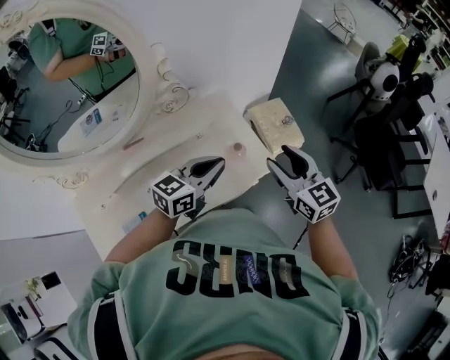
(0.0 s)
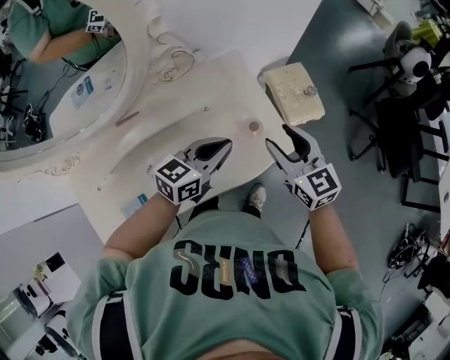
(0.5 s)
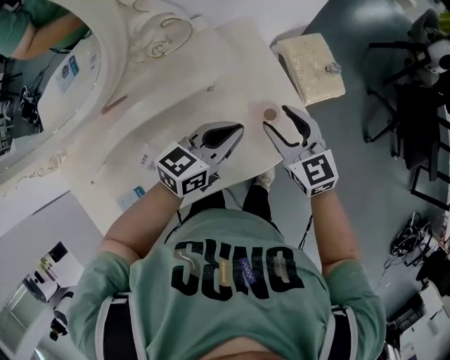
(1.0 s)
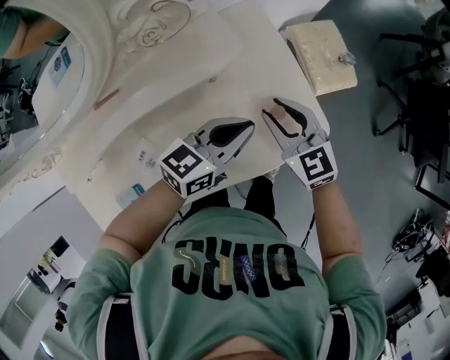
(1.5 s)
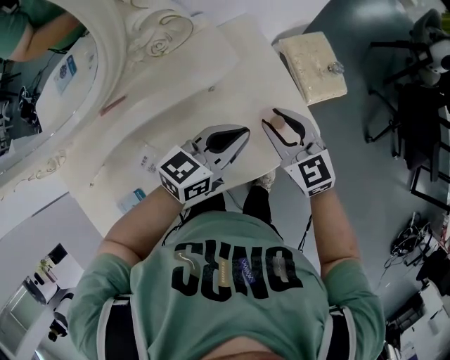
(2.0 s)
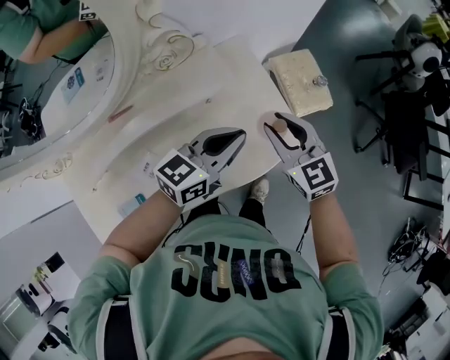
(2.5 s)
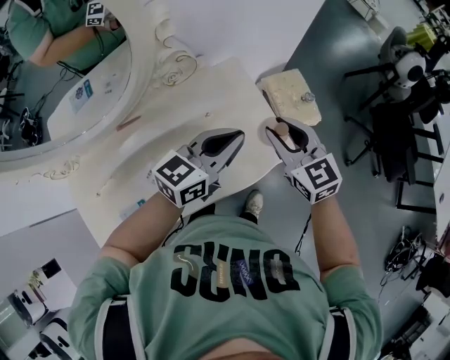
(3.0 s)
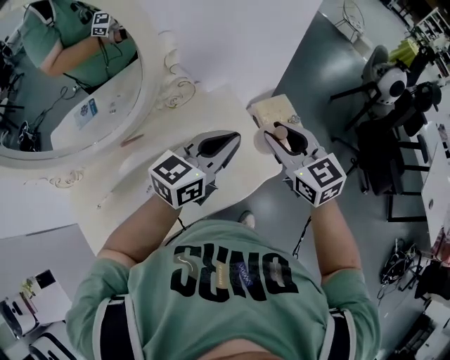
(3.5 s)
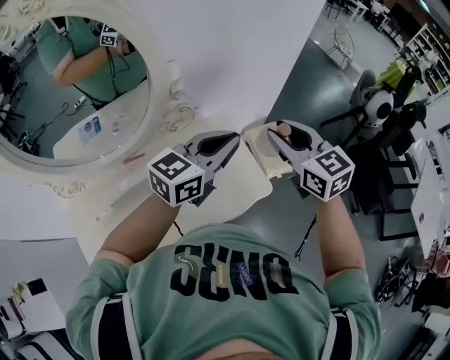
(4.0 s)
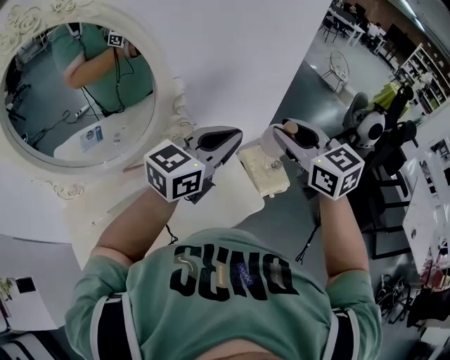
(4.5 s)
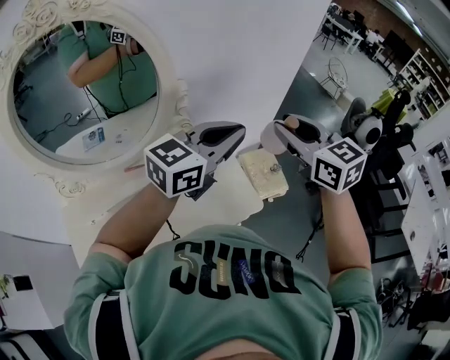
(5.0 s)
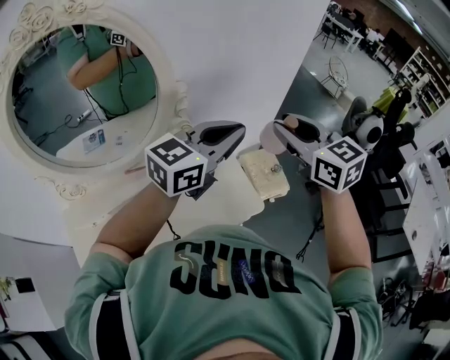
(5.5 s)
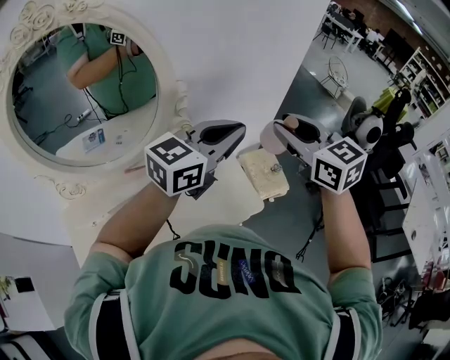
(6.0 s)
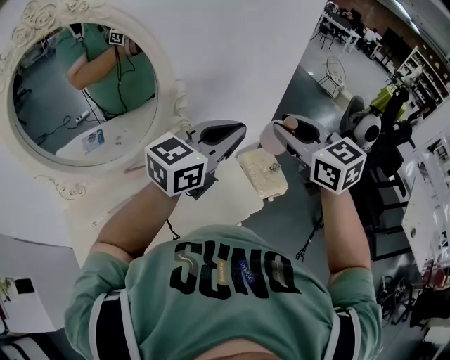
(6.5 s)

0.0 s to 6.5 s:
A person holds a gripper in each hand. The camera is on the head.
0.0 to 2.0 s: The right gripper moves downward and to the left, roughly 20 cm. The left gripper heads downward, covering some 15 cm.
2.0 to 4.5 s: The two grippers go roughly 35 cm upward. The left gripper turns by roughly 30 degrees.
4.5 to 6.5 s: There are only small adjustments of the grippers.

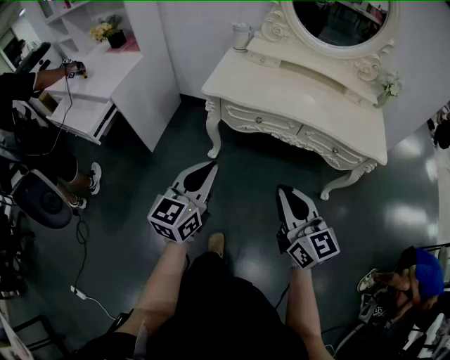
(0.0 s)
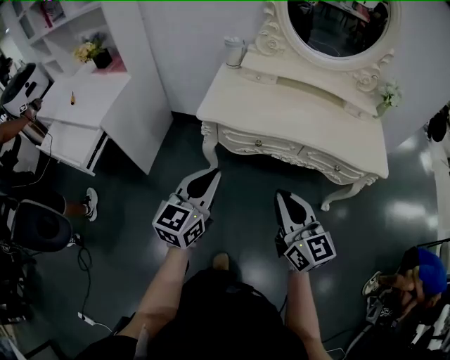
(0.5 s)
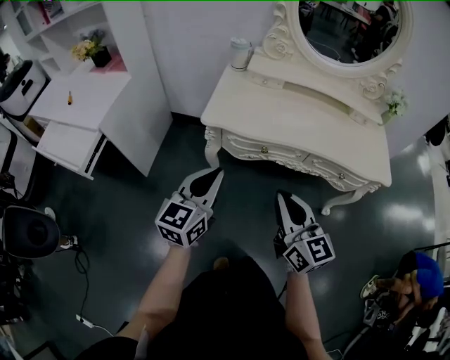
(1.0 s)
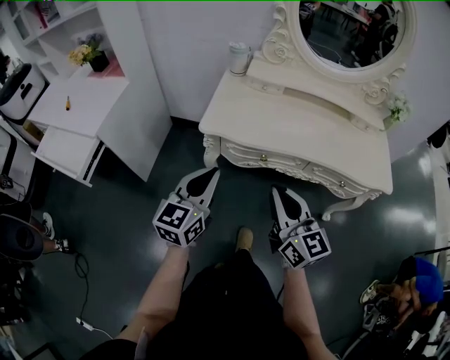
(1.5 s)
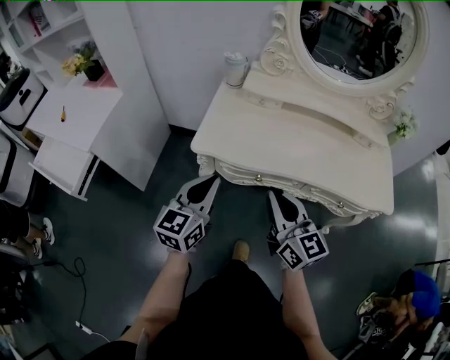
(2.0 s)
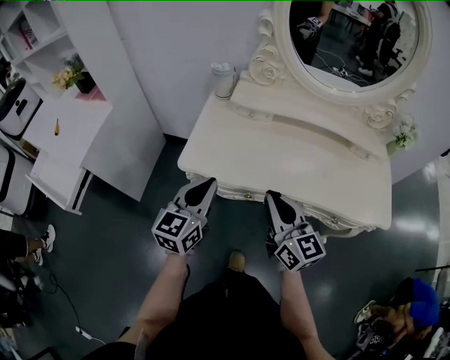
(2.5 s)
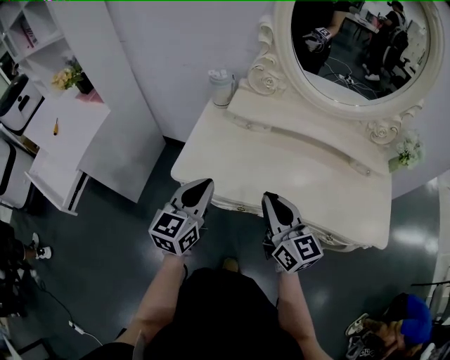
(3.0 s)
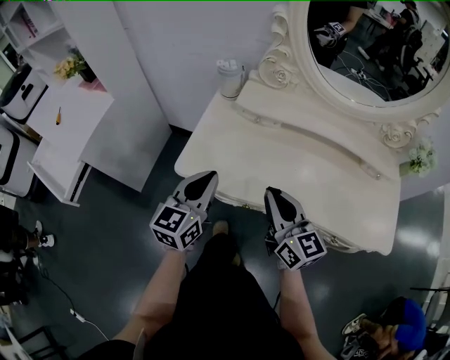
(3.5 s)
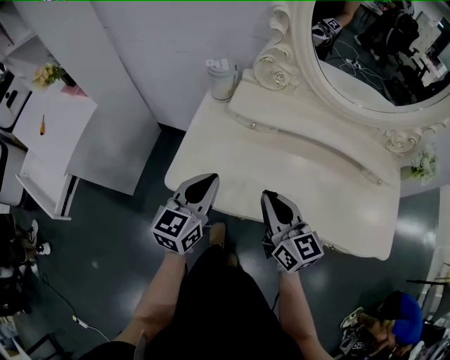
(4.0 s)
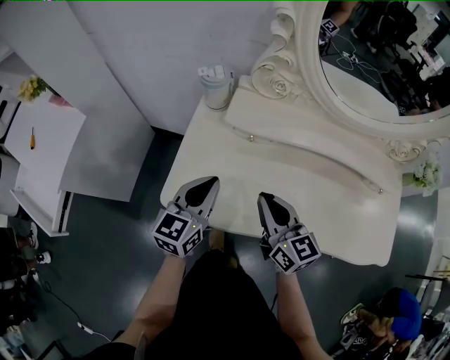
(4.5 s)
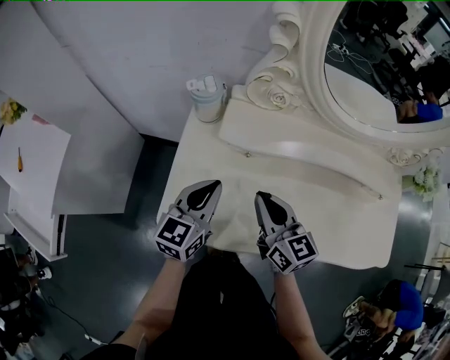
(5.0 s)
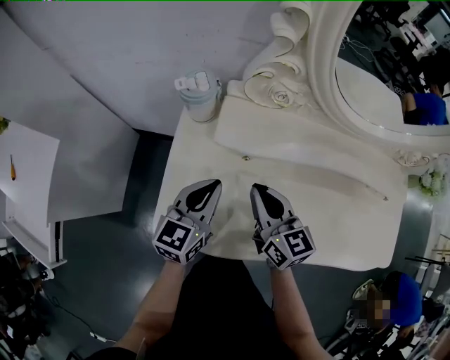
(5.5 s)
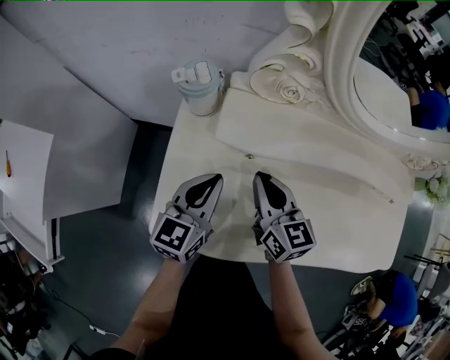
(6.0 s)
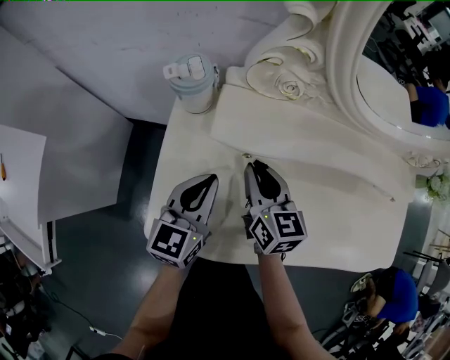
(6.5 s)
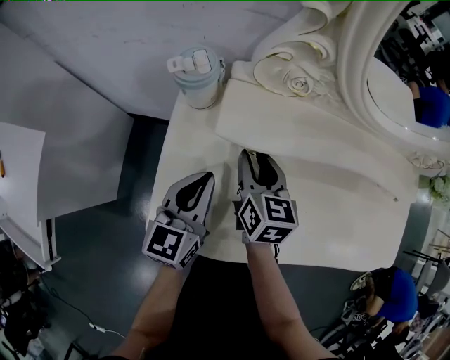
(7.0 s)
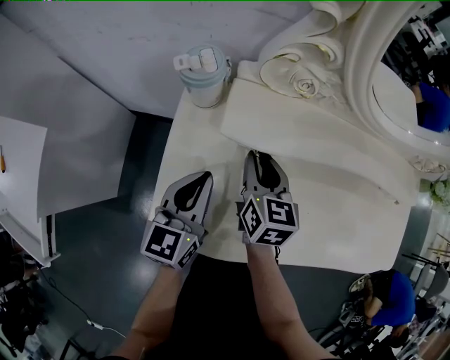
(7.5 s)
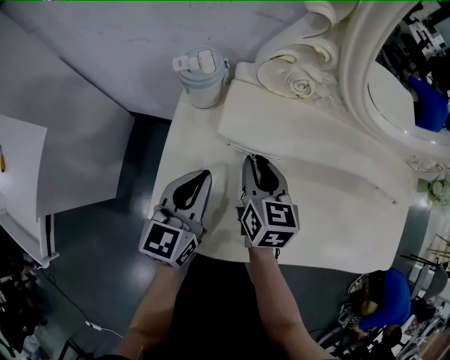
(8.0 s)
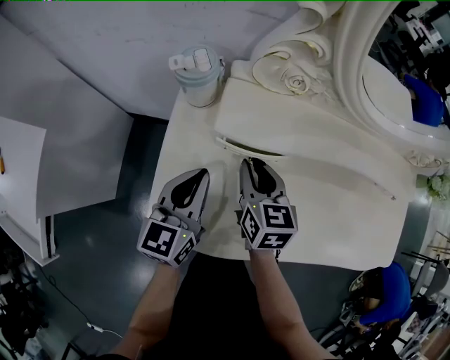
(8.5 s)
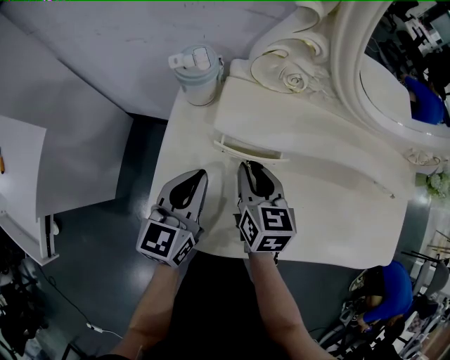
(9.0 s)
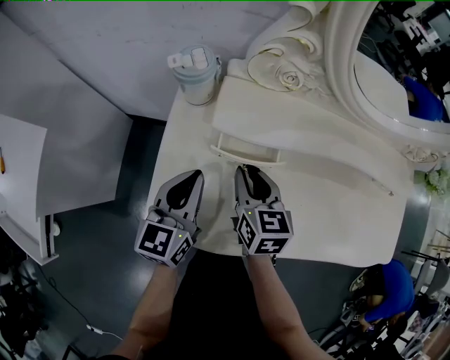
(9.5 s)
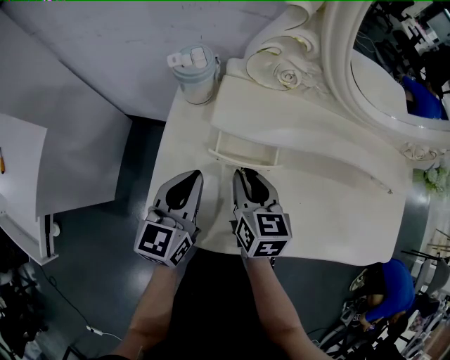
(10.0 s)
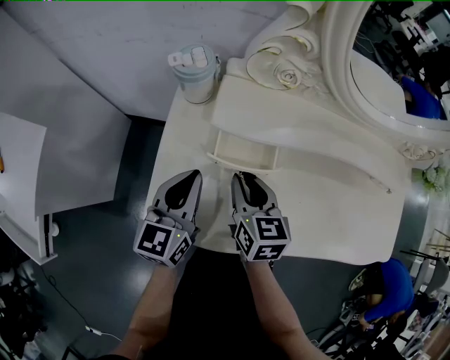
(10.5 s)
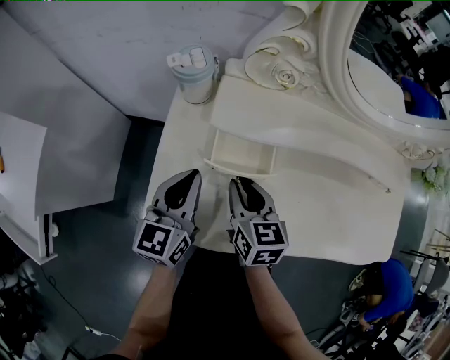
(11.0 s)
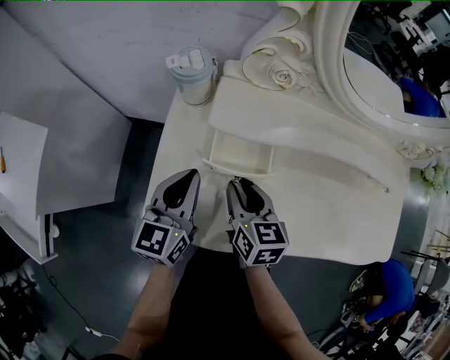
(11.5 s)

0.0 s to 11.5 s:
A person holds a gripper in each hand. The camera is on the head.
0.0 to 2.0 s: Both grippers move forward, some 30 cm.
2.0 to 4.0 s: The two grippers go some 20 cm forward.
4.0 to 6.0 s: Both grippers move forward and downward, approximately 20 cm.
6.0 to 7.5 s: The right gripper ends up roughly 5 cm from where it was, and opens its fingers.
7.5 to 9.5 s: The right gripper shifts some 5 cm backward.
9.5 to 11.5 s: The grippers make only small movements.

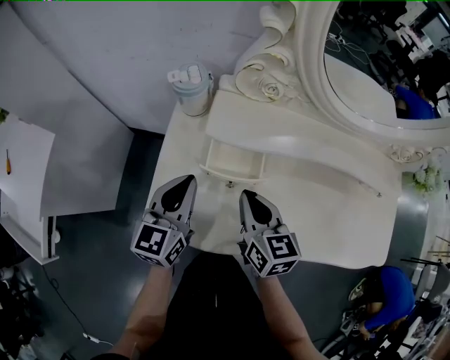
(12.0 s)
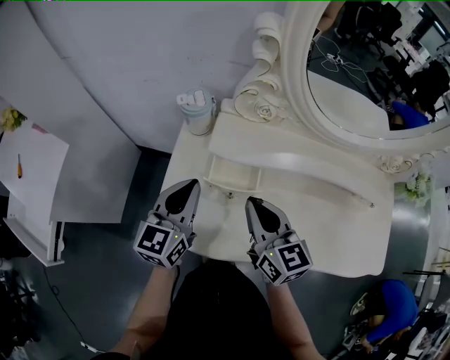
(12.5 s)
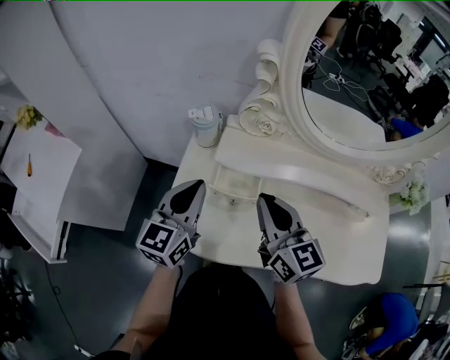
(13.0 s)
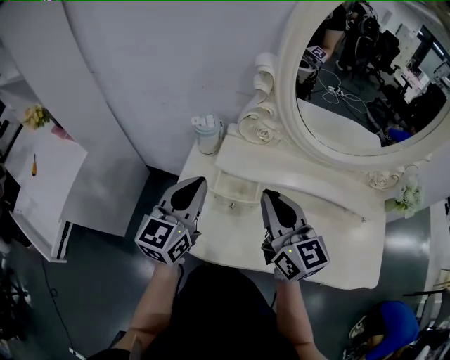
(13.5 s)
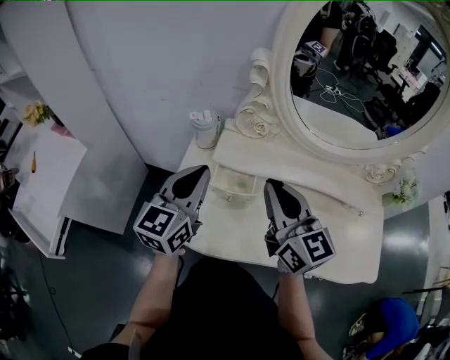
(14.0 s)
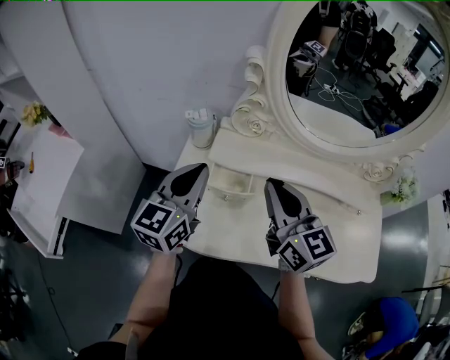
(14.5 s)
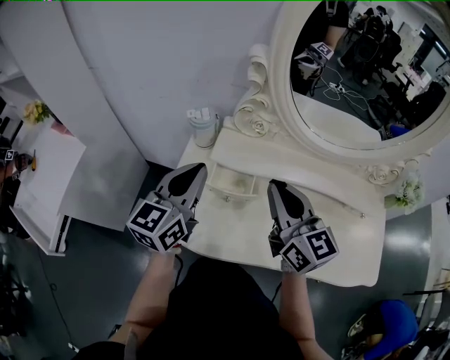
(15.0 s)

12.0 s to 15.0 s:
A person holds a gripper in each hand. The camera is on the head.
12.0 to 13.5 s: The two grippers go roughly 15 cm upward. The right gripper turns by about 30 degrees.
13.5 to 15.0 s: The grippers move only a little.

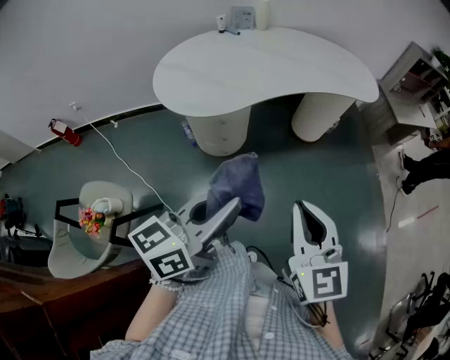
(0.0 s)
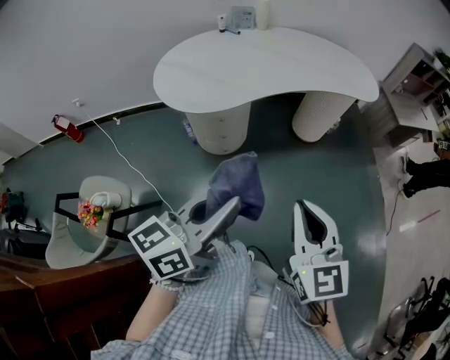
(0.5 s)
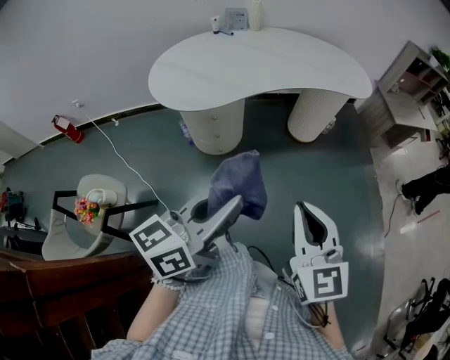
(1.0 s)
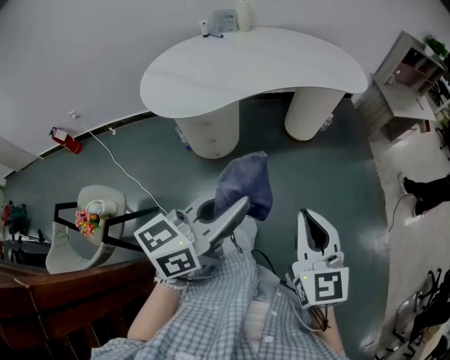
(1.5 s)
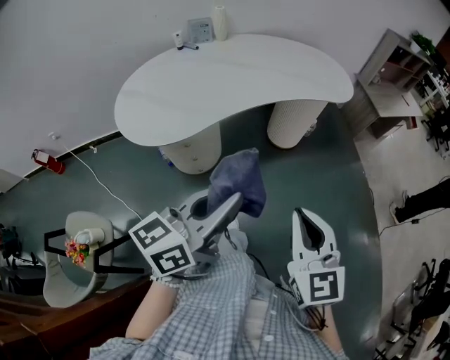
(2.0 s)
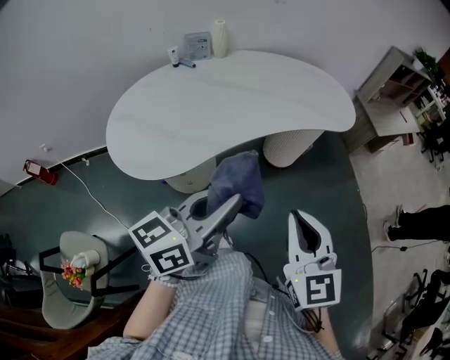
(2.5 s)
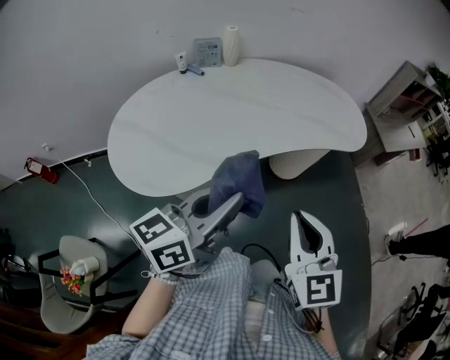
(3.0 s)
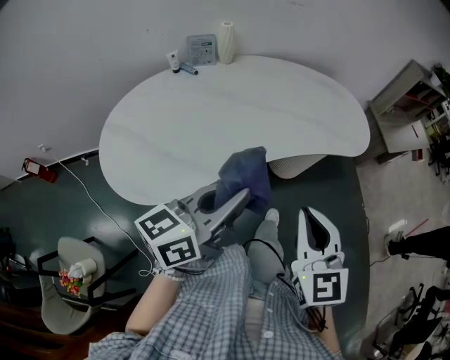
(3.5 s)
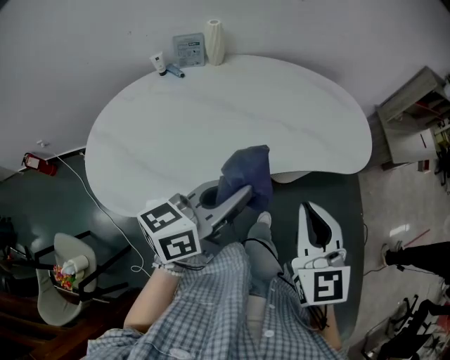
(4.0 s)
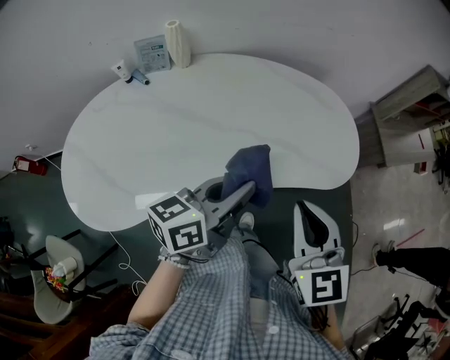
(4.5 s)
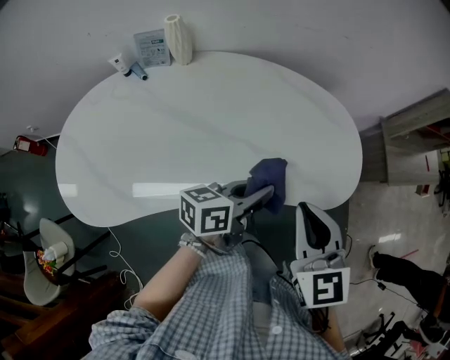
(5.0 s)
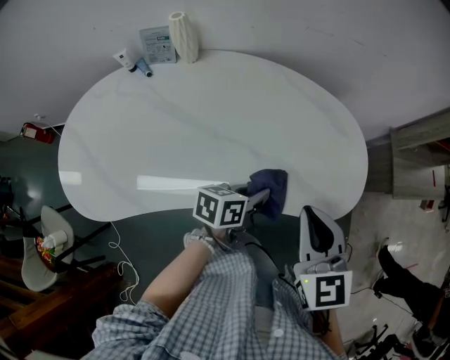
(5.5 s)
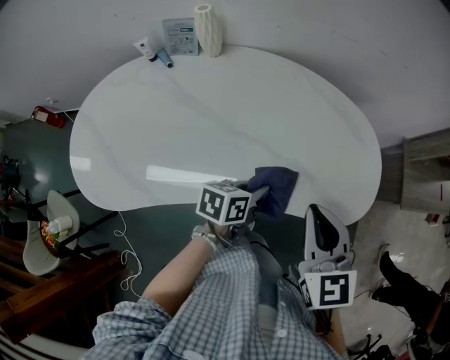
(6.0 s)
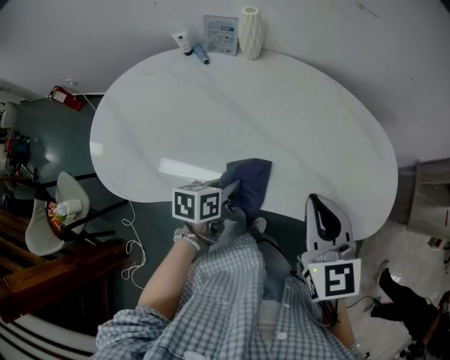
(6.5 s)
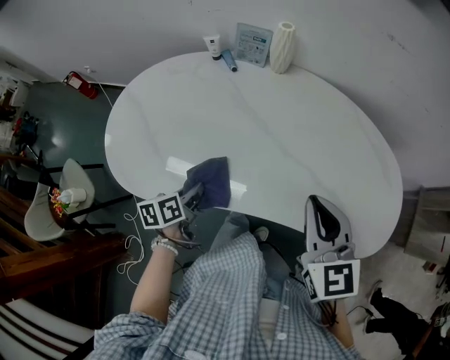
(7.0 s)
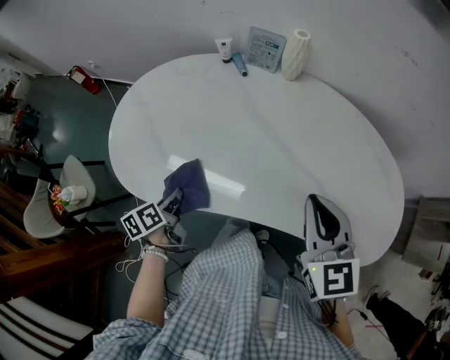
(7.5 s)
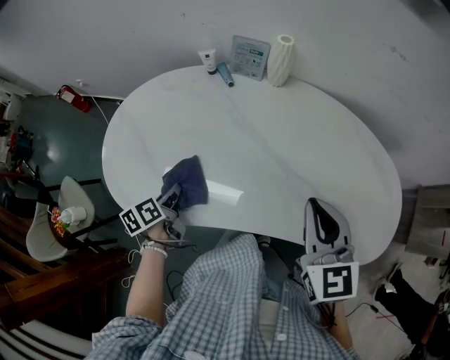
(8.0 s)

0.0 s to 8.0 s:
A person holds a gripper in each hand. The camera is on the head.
0.0 to 2.0 s: The right gripper is displaced to the right and forward by approximately 15 cm, while the left gripper is displaced forward and to the right by some 15 cm.
2.0 to 4.0 s: Both grippers move forward, approximately 35 cm.
4.0 to 6.0 s: The right gripper heads forward, covering about 20 cm; the left gripper is displaced downward, forward and to the right by about 30 cm, and tilts its fingers roughly 30 degrees downward.
6.0 to 8.0 s: The right gripper shifts by some 20 cm. The left gripper moves about 40 cm, and rotates roughly 50 degrees.
